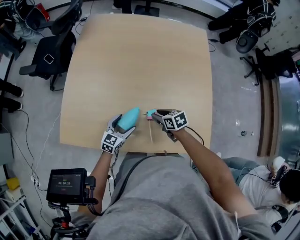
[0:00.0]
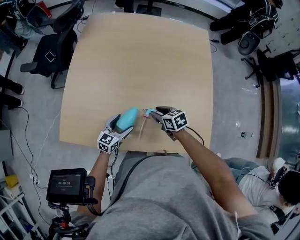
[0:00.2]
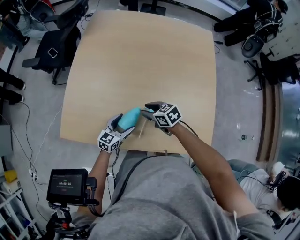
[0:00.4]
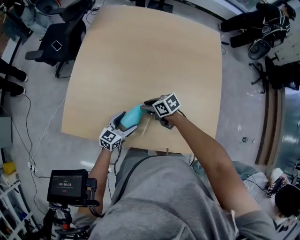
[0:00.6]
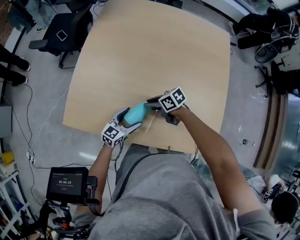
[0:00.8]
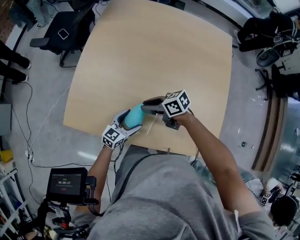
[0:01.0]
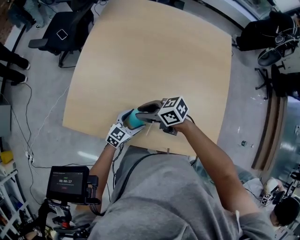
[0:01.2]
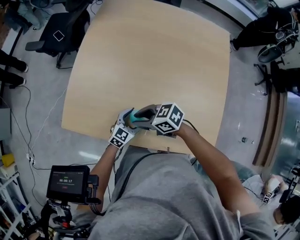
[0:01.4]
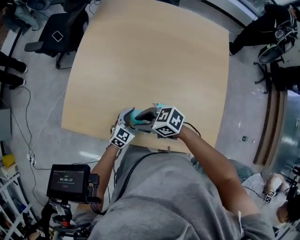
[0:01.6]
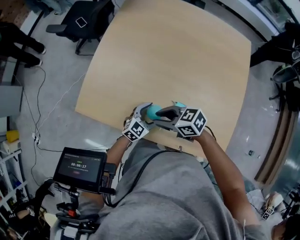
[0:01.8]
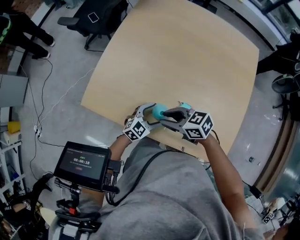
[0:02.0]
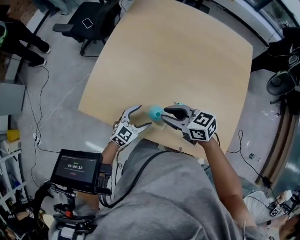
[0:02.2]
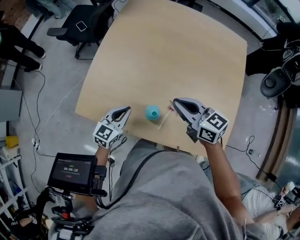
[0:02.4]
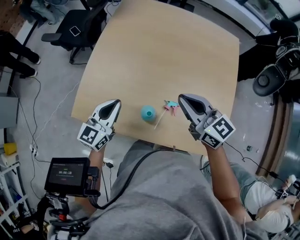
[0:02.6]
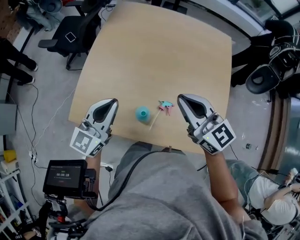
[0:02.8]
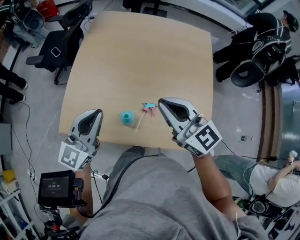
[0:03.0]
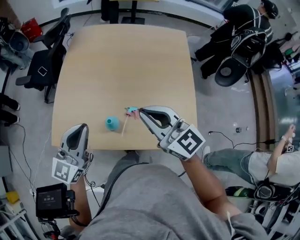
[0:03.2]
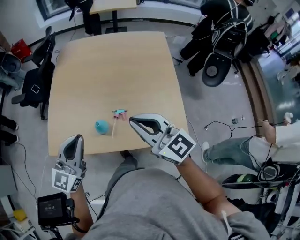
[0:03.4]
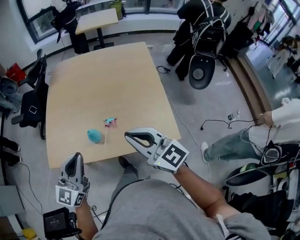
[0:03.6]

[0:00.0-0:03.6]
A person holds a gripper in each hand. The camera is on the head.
0:00.0 to 0:01.8: The right gripper ends up roughly 20 cm from where it was, and changes its angle by roughly 40 degrees.
0:01.8 to 0:03.6: Both grippers travel together upward, roughly 30 cm. The right gripper tilts its fingers about 30 degrees upward, and closes its fingers. The left gripper rotates some 30 degrees, and closes up.

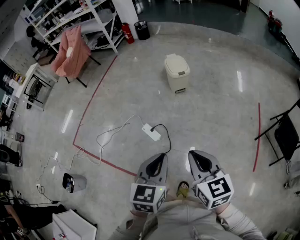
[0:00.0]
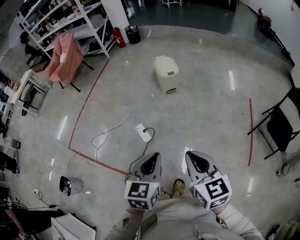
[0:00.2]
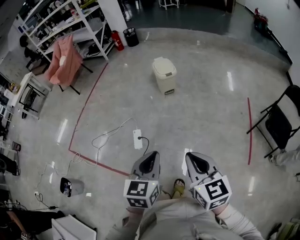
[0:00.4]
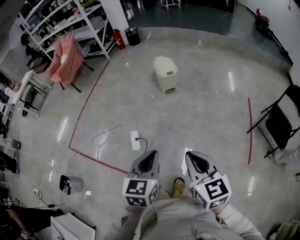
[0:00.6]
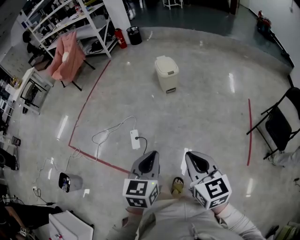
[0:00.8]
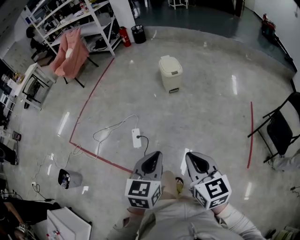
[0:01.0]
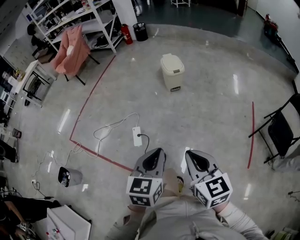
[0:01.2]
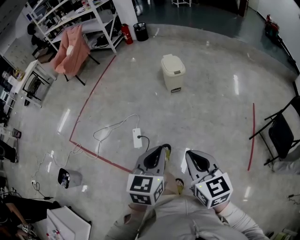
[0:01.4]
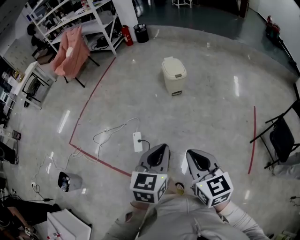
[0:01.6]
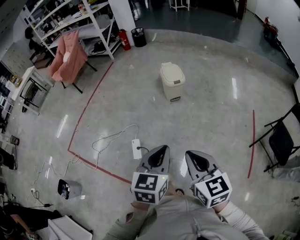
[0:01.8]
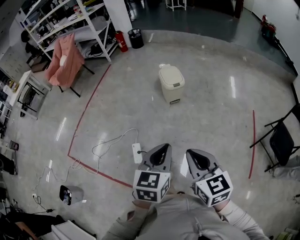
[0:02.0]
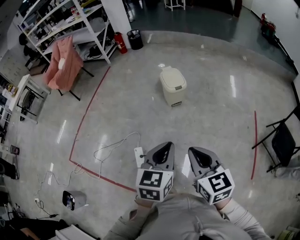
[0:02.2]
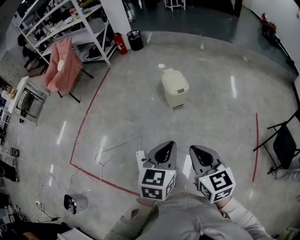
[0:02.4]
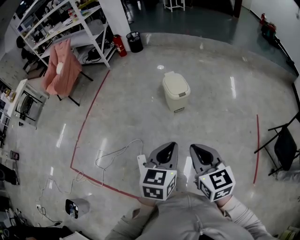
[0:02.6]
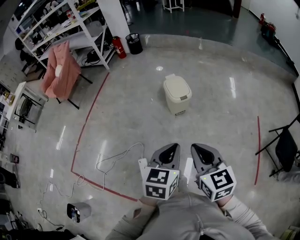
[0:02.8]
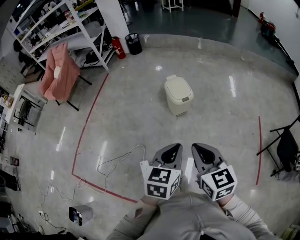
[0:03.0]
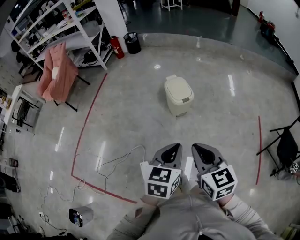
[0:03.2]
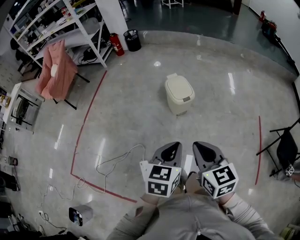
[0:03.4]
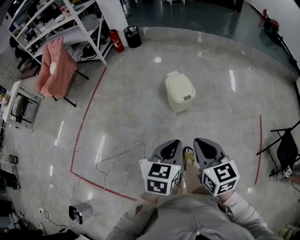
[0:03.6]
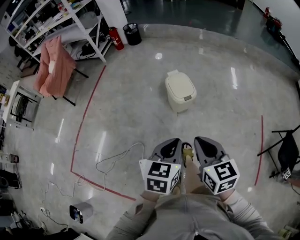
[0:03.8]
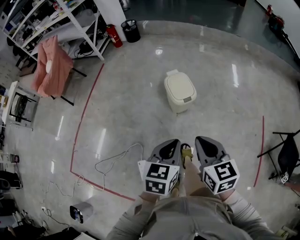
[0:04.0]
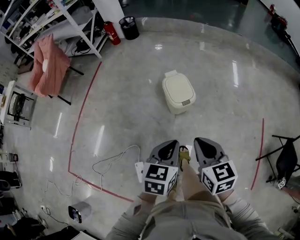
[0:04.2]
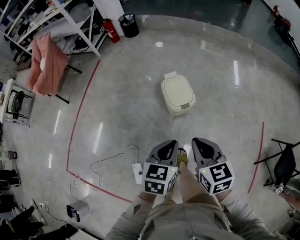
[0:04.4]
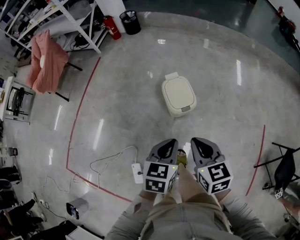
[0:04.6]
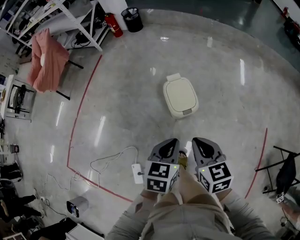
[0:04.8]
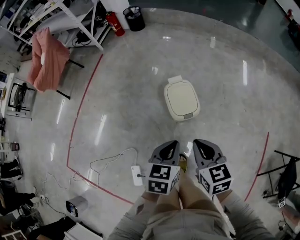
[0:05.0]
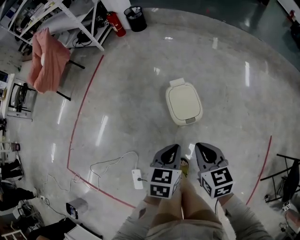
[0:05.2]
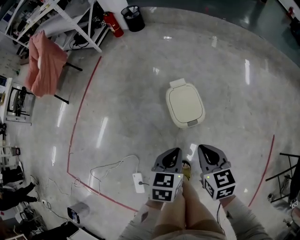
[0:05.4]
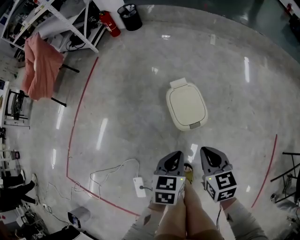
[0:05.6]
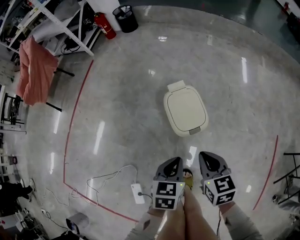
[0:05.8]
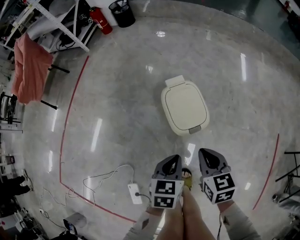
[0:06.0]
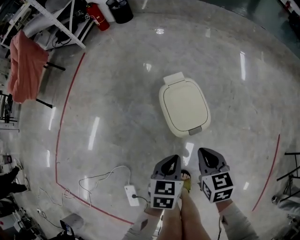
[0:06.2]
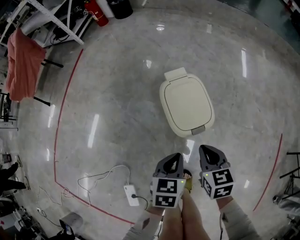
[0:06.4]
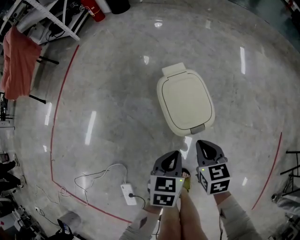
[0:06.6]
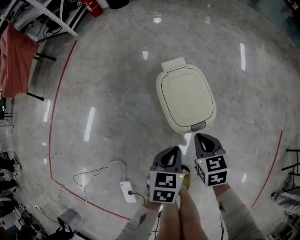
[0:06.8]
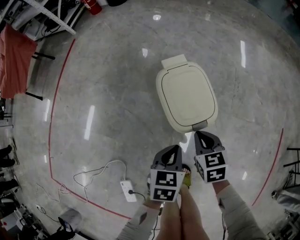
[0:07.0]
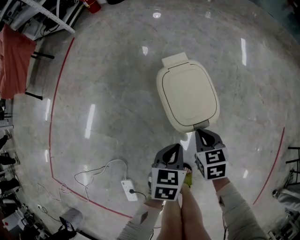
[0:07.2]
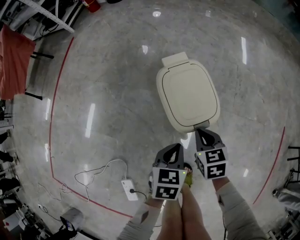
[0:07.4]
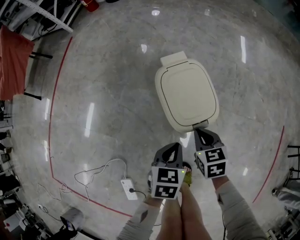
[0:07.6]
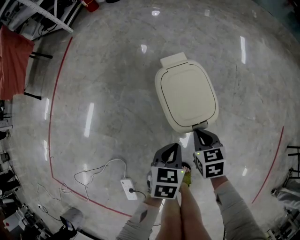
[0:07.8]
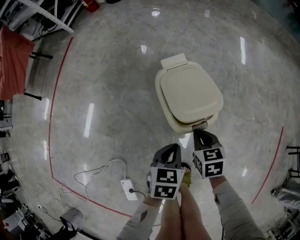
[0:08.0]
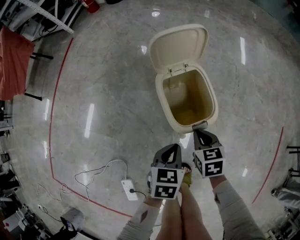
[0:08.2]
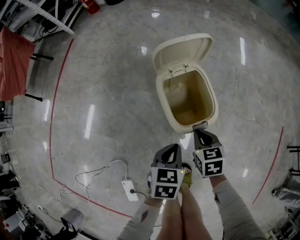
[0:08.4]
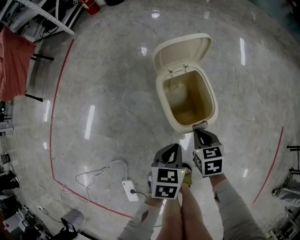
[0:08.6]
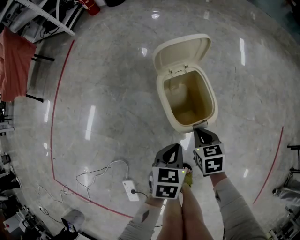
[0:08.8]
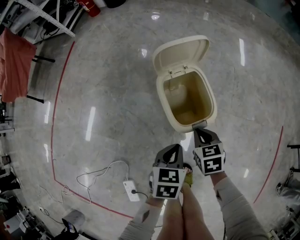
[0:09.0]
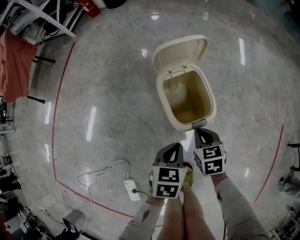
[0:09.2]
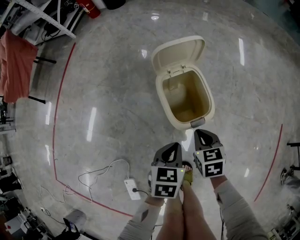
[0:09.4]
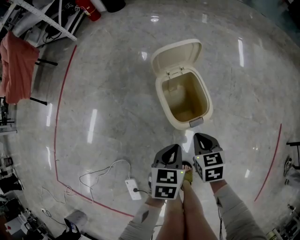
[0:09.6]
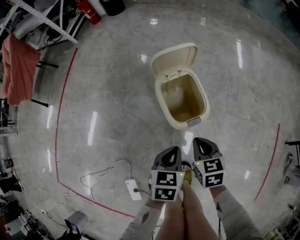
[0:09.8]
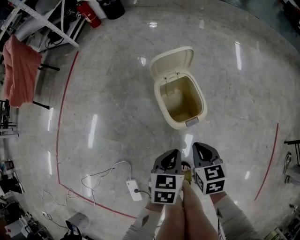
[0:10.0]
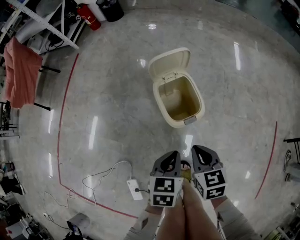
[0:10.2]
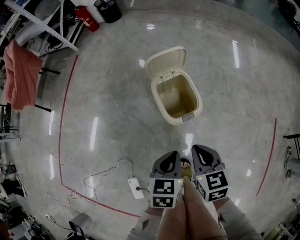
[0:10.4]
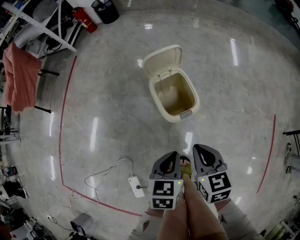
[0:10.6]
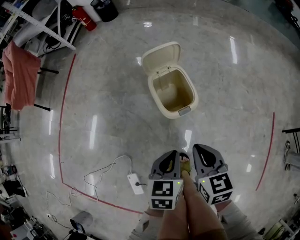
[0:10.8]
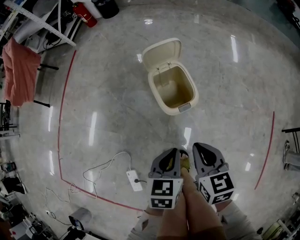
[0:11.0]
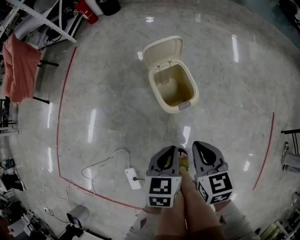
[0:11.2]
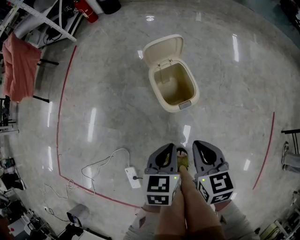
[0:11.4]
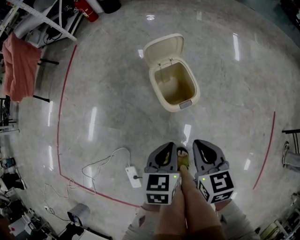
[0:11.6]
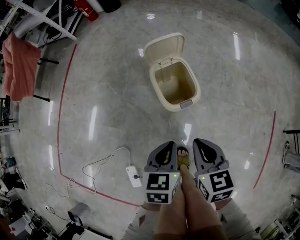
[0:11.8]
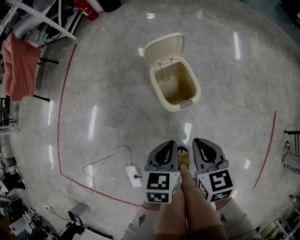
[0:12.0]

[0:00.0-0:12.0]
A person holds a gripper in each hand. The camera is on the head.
0:00.0 to 0:01.6: The left gripper reaches approximately 10 cm backward, then returns; the right gripper goes backward and returns, approximately 10 cm each way.
0:01.6 to 0:03.0: The two grippers go about 30 cm forward.
0:03.0 to 0:04.4: The grippers both shift forward by about 25 cm.
0:04.4 to 0:06.0: Both grippers move downward and forward, about 30 cm.
0:06.0 to 0:07.6: The two grippers go roughly 15 cm downward.
0:07.6 to 0:09.0: There are only small adjustments of the grippers.
0:09.0 to 0:10.4: Both grippers travel together upward and backward, roughly 20 cm.
0:10.4 to 0:12.0: The grippers stay close to where they were, moving slightly.

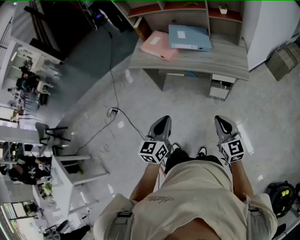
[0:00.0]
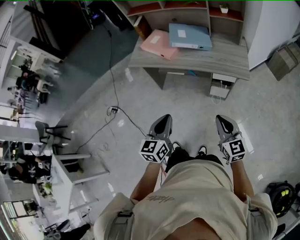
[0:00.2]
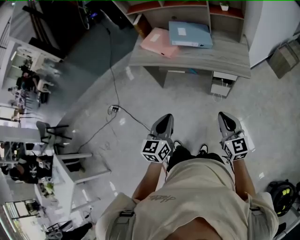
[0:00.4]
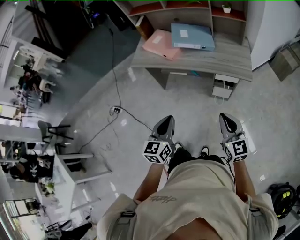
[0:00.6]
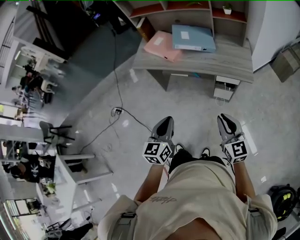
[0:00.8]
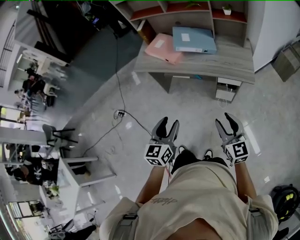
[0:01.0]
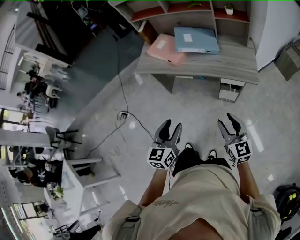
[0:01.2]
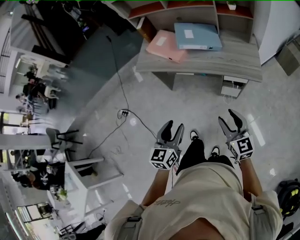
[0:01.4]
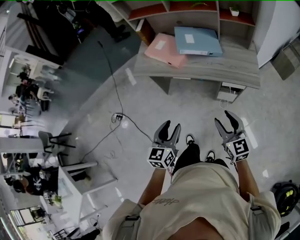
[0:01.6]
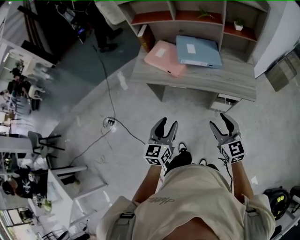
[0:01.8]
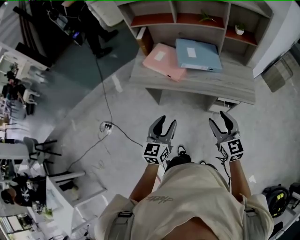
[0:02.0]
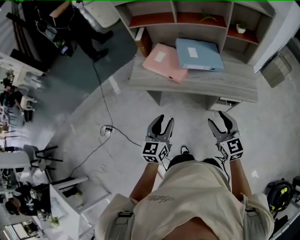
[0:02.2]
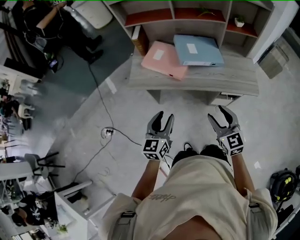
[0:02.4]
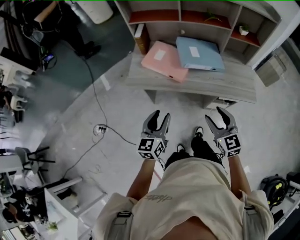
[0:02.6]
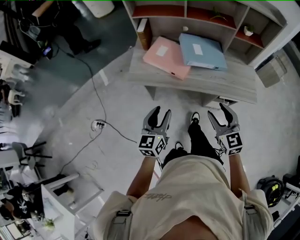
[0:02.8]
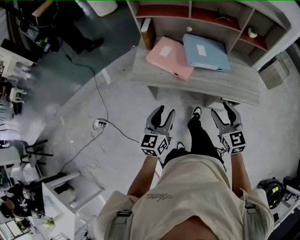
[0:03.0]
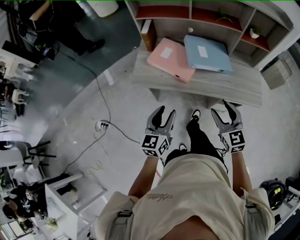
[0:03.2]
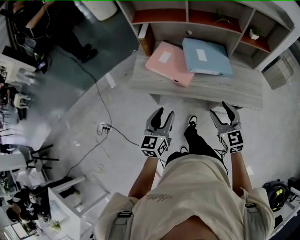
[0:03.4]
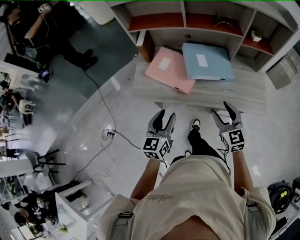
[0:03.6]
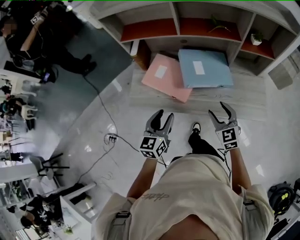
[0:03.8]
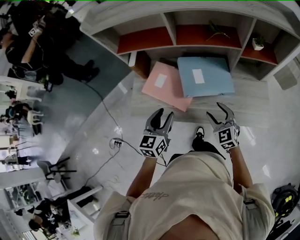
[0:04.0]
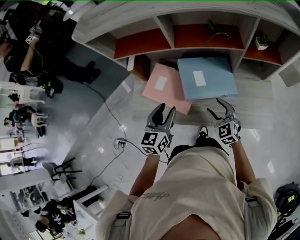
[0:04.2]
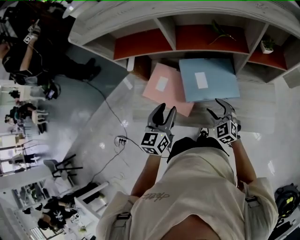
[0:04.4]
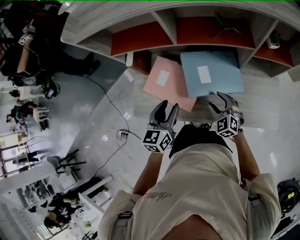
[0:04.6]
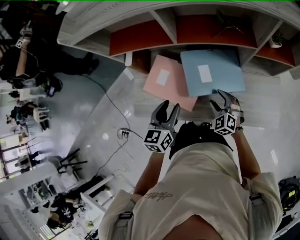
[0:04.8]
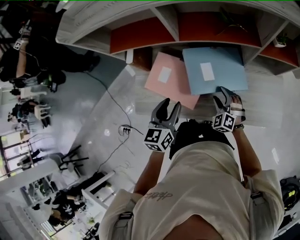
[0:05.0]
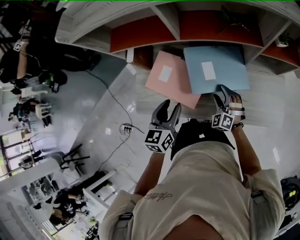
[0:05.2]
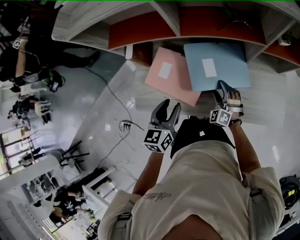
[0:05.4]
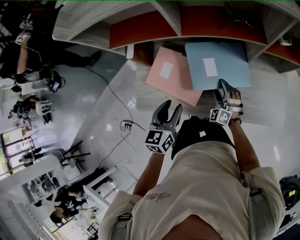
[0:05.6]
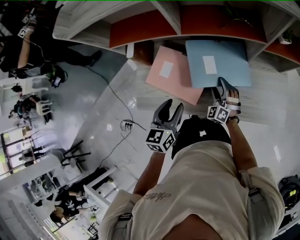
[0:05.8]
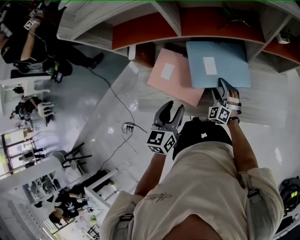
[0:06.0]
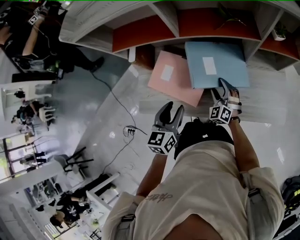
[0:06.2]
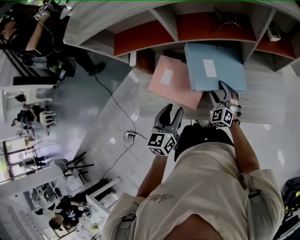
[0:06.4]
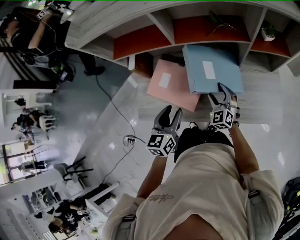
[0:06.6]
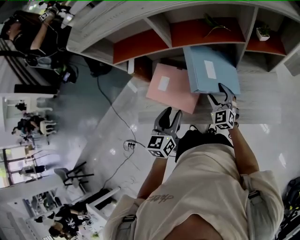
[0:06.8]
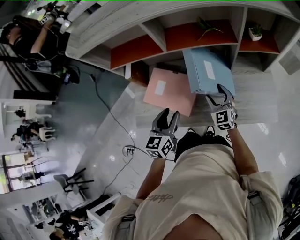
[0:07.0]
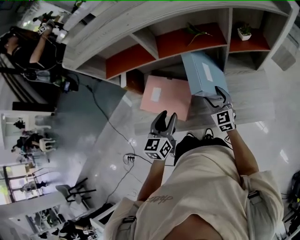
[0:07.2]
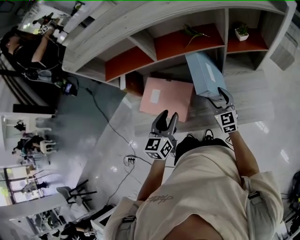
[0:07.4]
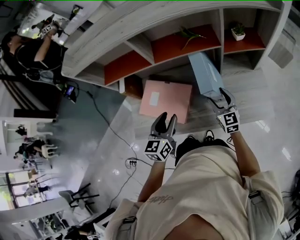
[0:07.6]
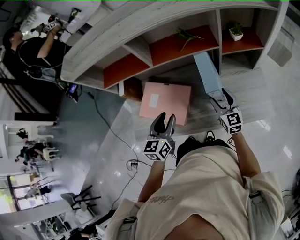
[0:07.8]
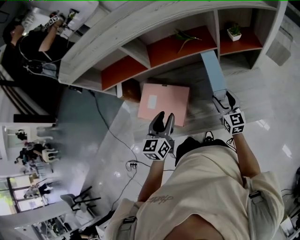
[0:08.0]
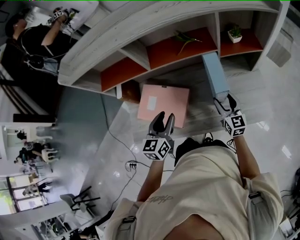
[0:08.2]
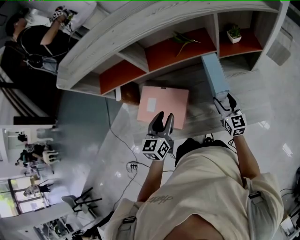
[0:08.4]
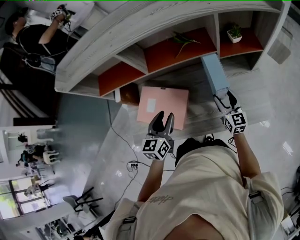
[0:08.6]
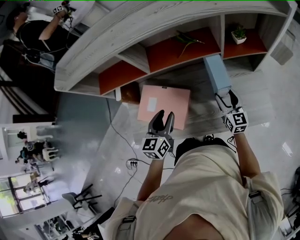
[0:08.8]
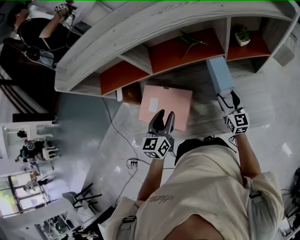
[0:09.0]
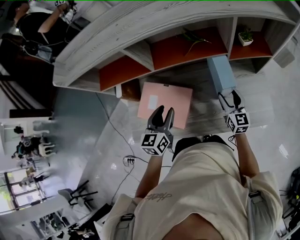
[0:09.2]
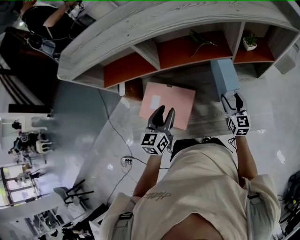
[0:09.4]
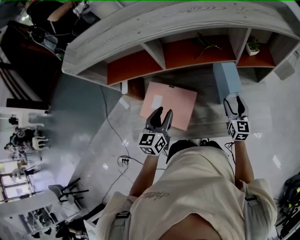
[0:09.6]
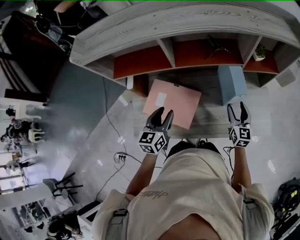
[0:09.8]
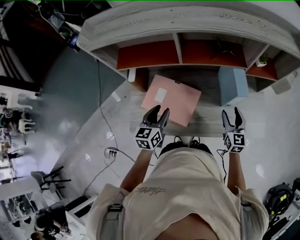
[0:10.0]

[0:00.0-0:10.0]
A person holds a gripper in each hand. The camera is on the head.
0:00.0 to 0:01.4: The left gripper moves roughly 5 cm, and opens up. Meanwhile the right gripper shifts about 5 cm forward, and opens its fingers.
0:01.4 to 0:02.8: The two grippers go about 25 cm forward and to the left.
0:02.8 to 0:04.2: The left gripper moves forward, some 25 cm. The right gripper moves forward and downward, roughly 30 cm.
0:04.2 to 0:05.8: The right gripper shifts approximately 15 cm downward and forward, and changes its angle by about 30 degrees.
0:05.8 to 0:07.2: The right gripper goes some 10 cm upward and to the right, and twists roughly 40 degrees clockwise, seen from behind.
0:07.2 to 0:08.6: The left gripper goes roughly 5 cm forward, while the right gripper moves to the right, roughly 10 cm, and changes its angle by approximately 20 degrees.
0:08.6 to 0:10.0: The left gripper goes some 10 cm to the left. Meanwhile the right gripper shifts by roughly 5 cm.
